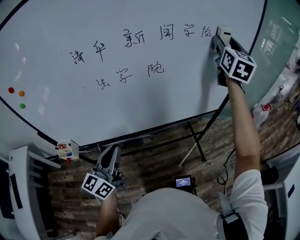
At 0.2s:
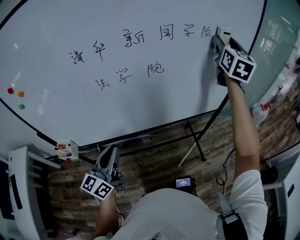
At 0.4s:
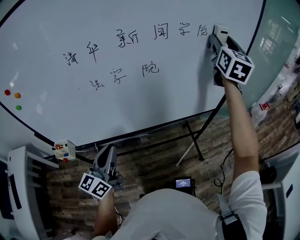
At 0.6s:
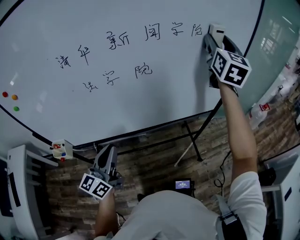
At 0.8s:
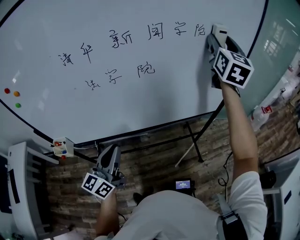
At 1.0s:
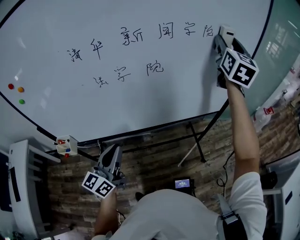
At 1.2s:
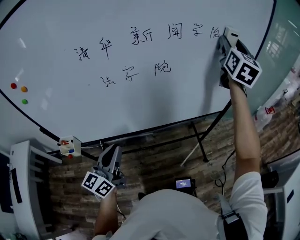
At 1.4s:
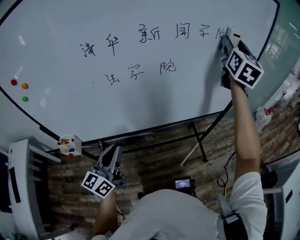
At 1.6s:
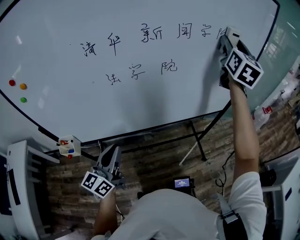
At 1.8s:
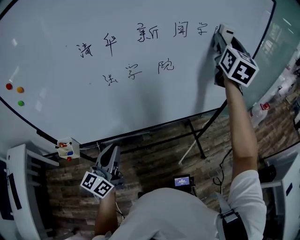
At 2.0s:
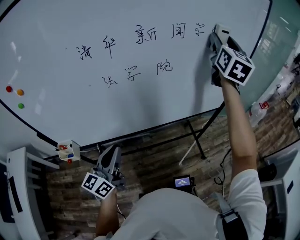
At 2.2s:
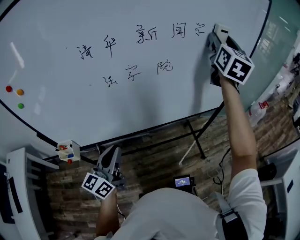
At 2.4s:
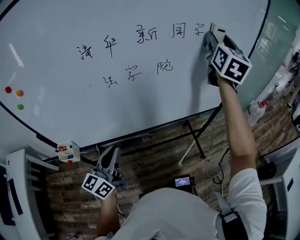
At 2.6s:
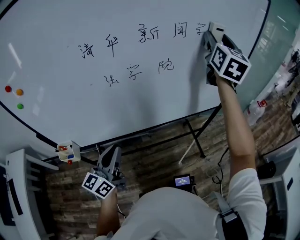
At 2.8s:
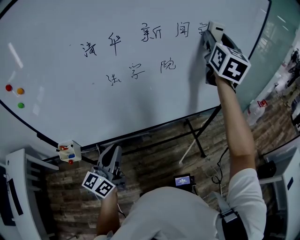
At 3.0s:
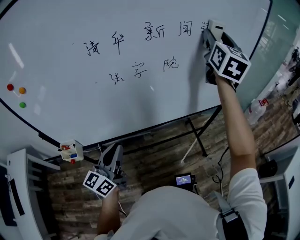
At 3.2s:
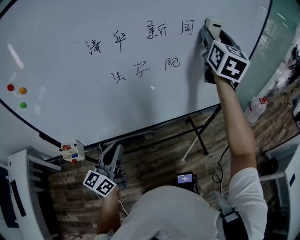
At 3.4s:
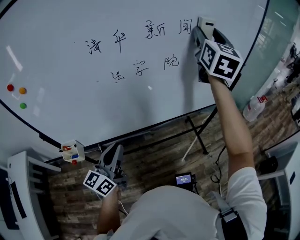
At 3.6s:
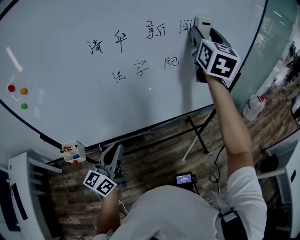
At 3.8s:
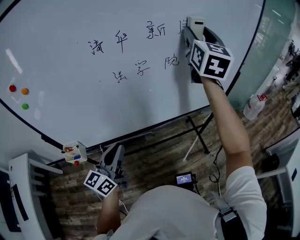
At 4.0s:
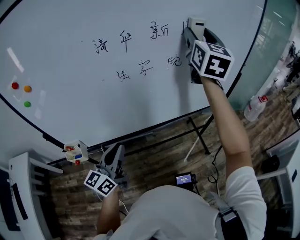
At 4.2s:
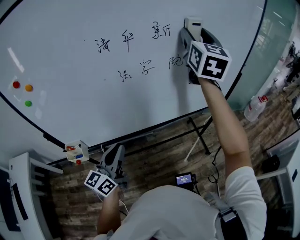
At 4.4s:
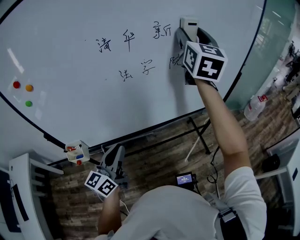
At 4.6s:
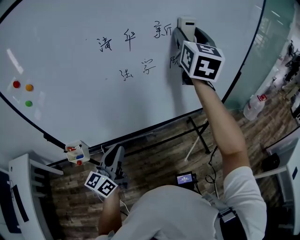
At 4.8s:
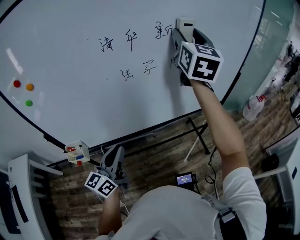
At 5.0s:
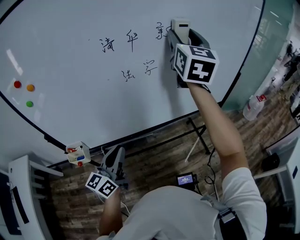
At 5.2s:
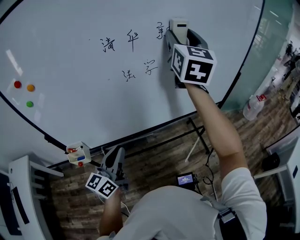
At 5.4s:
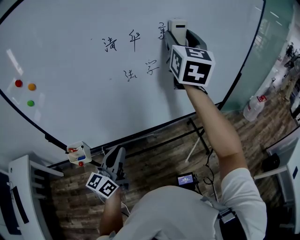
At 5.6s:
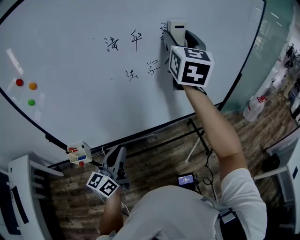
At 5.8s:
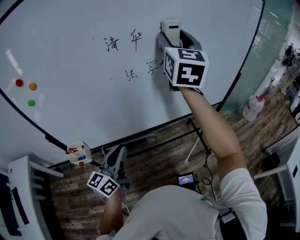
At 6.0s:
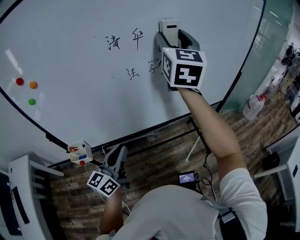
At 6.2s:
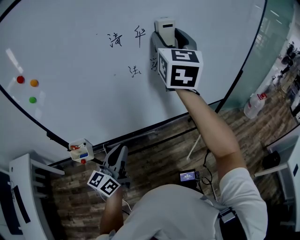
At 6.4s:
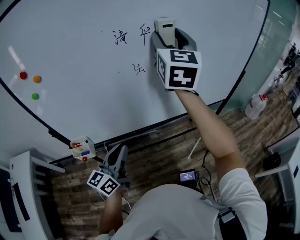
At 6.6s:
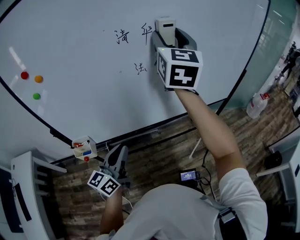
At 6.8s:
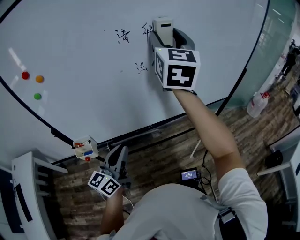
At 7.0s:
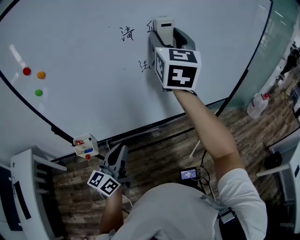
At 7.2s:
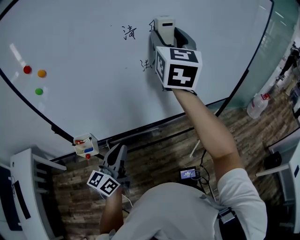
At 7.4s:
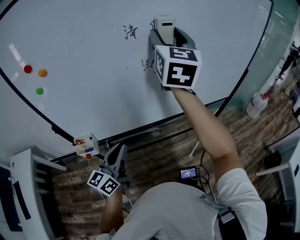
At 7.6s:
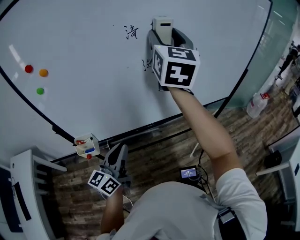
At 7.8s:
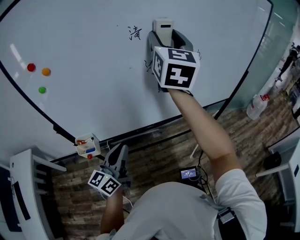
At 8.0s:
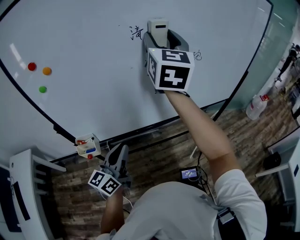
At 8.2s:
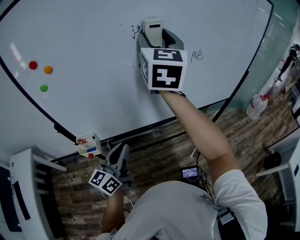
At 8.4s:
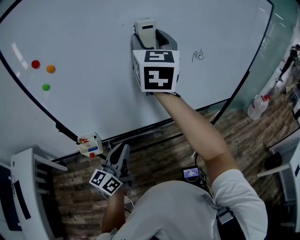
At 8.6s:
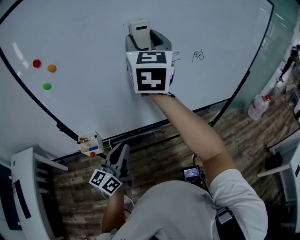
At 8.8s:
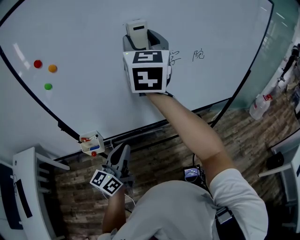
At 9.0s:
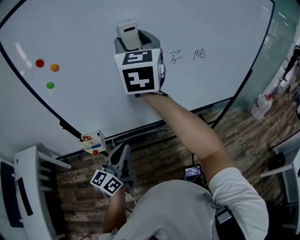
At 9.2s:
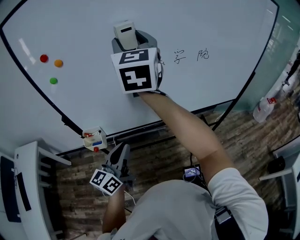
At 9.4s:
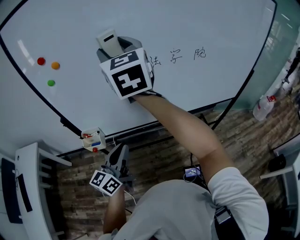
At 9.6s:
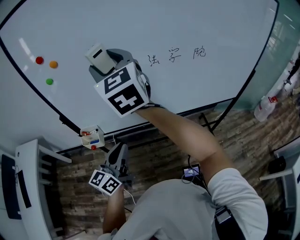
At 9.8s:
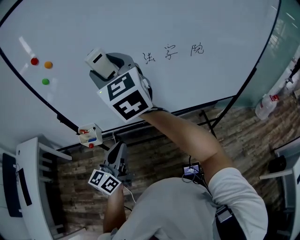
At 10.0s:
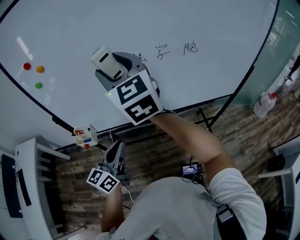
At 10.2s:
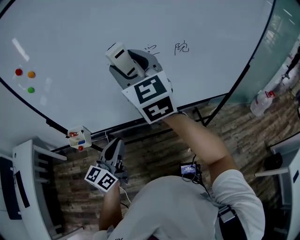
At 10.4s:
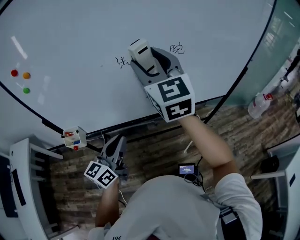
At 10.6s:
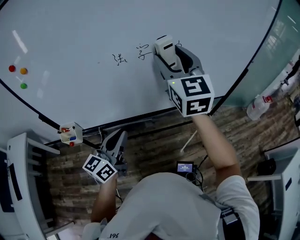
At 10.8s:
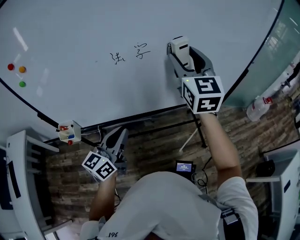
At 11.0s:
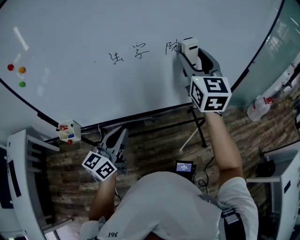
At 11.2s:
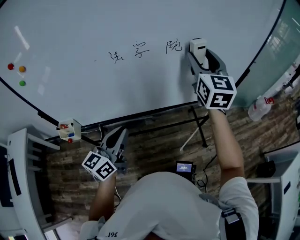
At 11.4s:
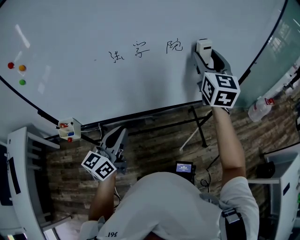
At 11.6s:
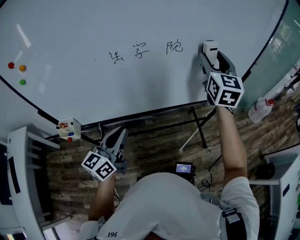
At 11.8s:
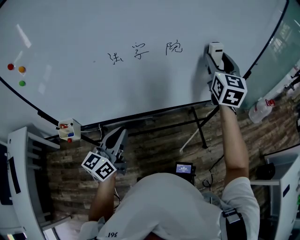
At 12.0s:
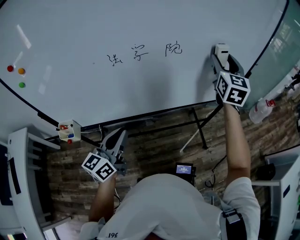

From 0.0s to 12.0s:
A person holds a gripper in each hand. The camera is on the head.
From 0.0s to 1.6s: The grippers stay close to where they were, moving slightly.
From 1.6s to 3.0s: The right gripper travels to the left by some 10 cm.
From 3.0s to 4.4s: The right gripper moves to the left and backward, about 15 cm.
From 4.4s to 6.0s: The right gripper is displaced to the left by approximately 10 cm.
From 6.0s to 7.6s: The right gripper moves to the left, approximately 5 cm.
From 7.6s to 9.0s: The right gripper heads to the left and backward, covering approximately 15 cm.
From 9.0s to 10.4s: The left gripper heads to the right, covering some 10 cm; the right gripper travels to the right and downward by approximately 15 cm.
From 10.4s to 12.0s: The left gripper shifts by about 5 cm; the right gripper is displaced to the right and forward by some 30 cm, and rotates roughly 30 degrees.

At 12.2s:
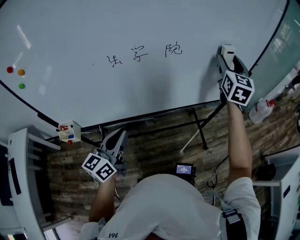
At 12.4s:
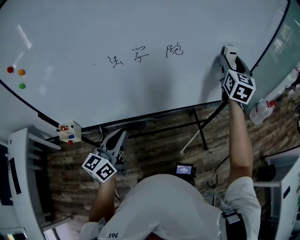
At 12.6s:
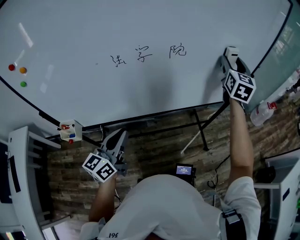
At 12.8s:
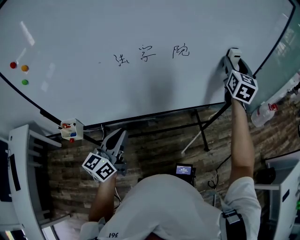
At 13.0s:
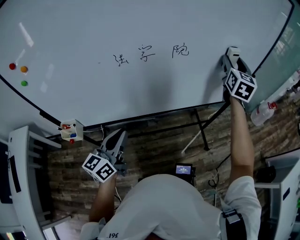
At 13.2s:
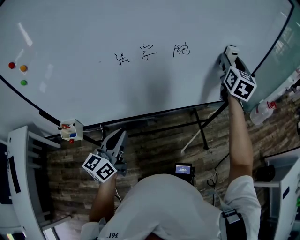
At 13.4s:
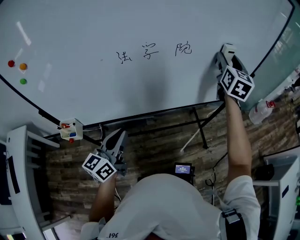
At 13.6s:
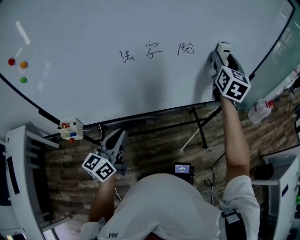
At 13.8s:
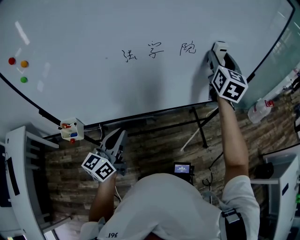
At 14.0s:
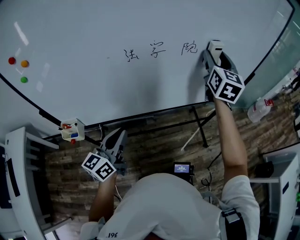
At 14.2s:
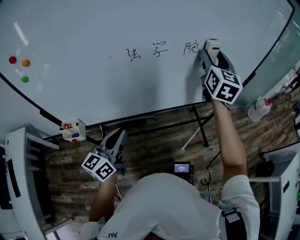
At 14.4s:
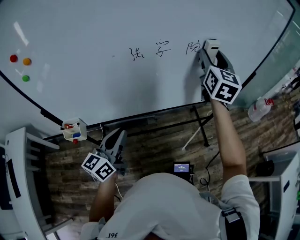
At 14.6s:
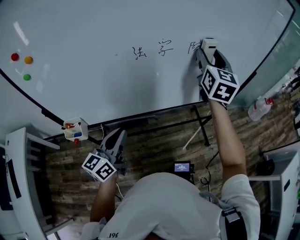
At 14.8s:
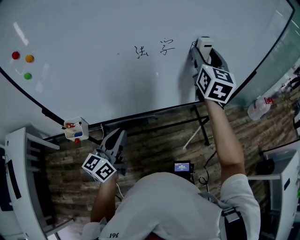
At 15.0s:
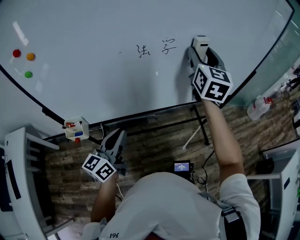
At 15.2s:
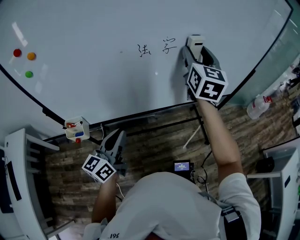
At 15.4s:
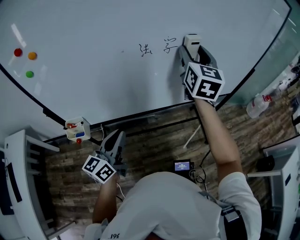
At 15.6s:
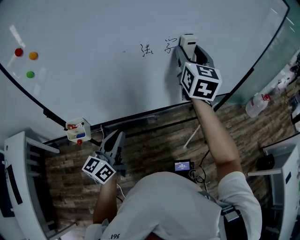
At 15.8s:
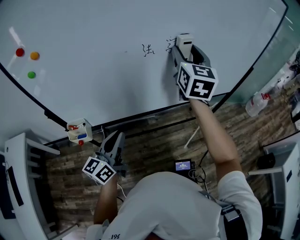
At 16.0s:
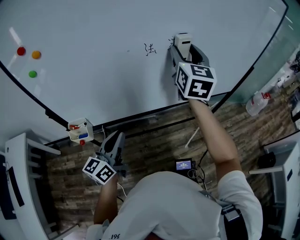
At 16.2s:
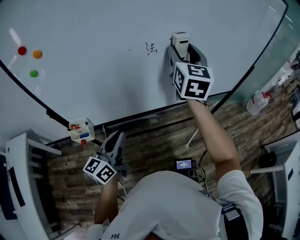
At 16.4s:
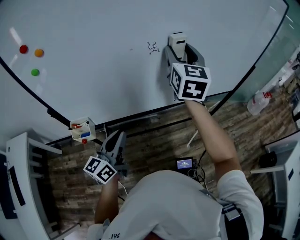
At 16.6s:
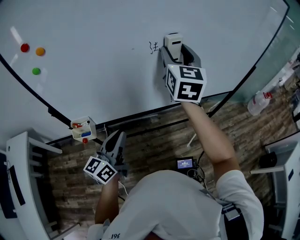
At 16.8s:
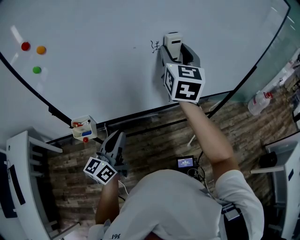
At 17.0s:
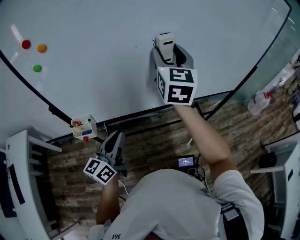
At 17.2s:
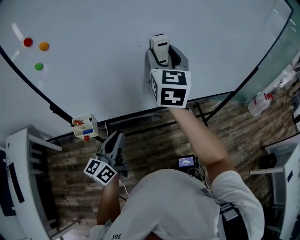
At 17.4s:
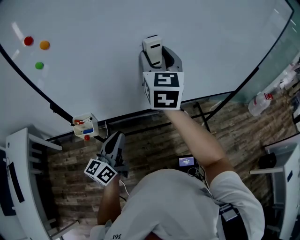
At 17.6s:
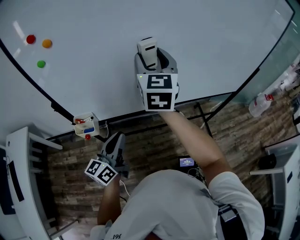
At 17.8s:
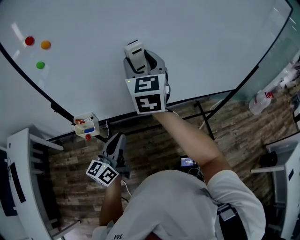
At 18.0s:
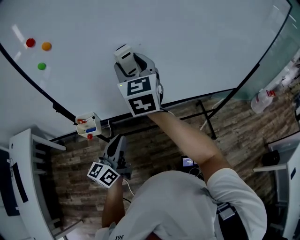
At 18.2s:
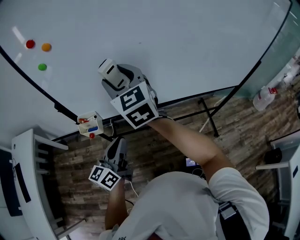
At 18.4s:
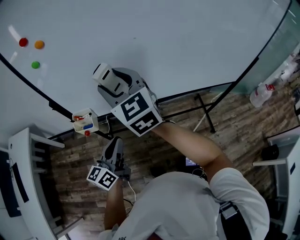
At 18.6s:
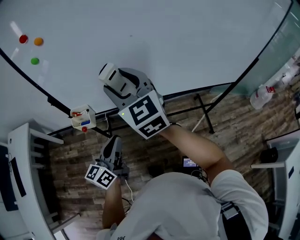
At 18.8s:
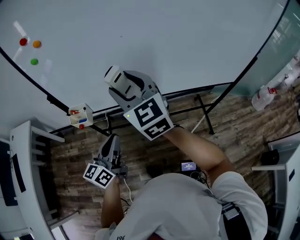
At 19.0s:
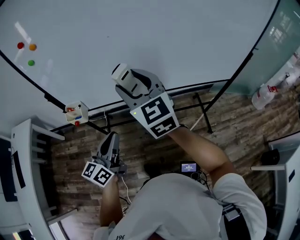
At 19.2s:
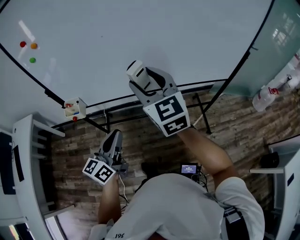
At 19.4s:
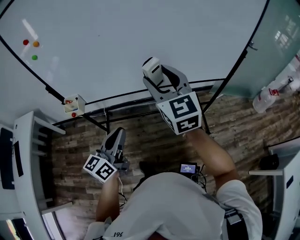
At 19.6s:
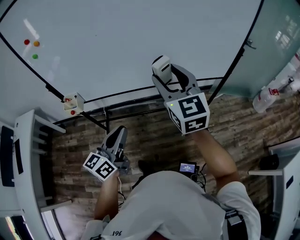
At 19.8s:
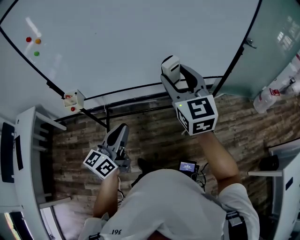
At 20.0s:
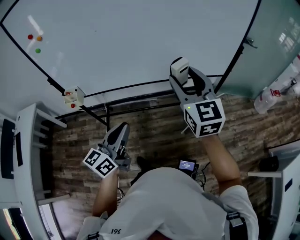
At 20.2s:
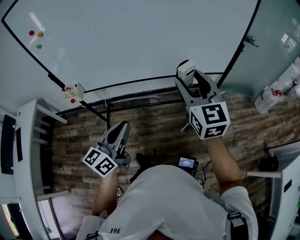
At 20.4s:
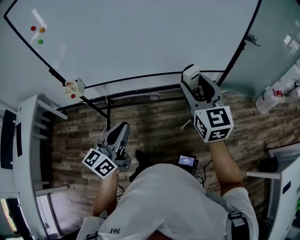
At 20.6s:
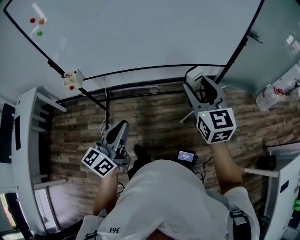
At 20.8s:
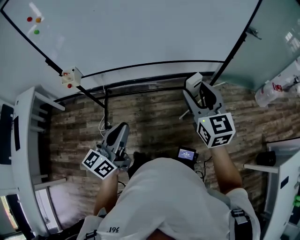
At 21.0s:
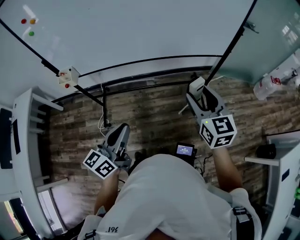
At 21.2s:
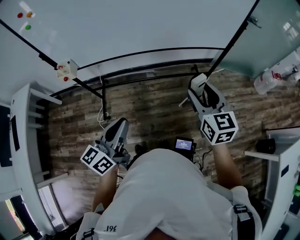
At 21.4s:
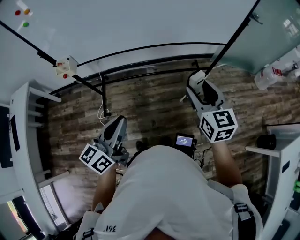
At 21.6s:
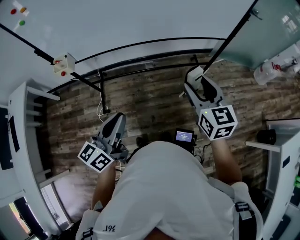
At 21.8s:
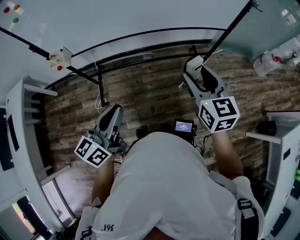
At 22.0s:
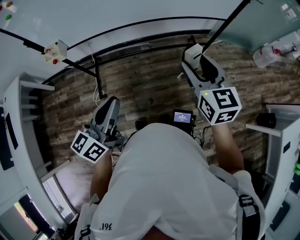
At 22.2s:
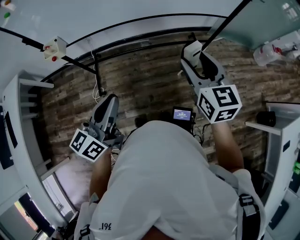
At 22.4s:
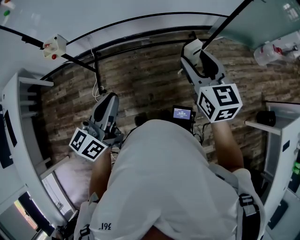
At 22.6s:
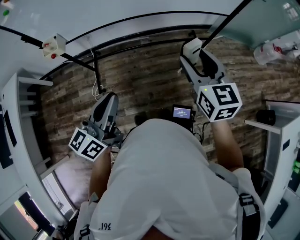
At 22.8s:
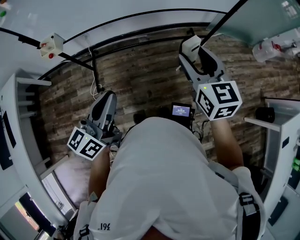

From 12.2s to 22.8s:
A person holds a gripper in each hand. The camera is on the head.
From 12.2s to 13.8s: The right gripper travels to the left by about 10 cm, while the left gripper changes place by approximately 5 cm.
From 13.8s to 15.2s: The left gripper travels to the left by roughly 5 cm. Meanwhile the right gripper shifts approximately 15 cm to the left and backward.
From 15.2s to 16.8s: The left gripper moves some 5 cm; the right gripper is displaced to the left by approximately 10 cm.
From 16.8s to 18.2s: The left gripper shifts by approximately 5 cm, while the right gripper travels to the left and backward by some 25 cm, and rotates approximately 30 degrees.
From 18.2s to 19.8s: The left gripper goes about 25 cm to the right and backward, while the right gripper goes approximately 40 cm to the right and backward.
From 19.8s to 21.2s: The right gripper goes roughly 20 cm downward, backward and to the right. The left gripper moves backward, some 10 cm.
From 21.2s to 22.8s: The left gripper ends up about 5 cm from where it was. Meanwhile the right gripper goes some 5 cm to the left.

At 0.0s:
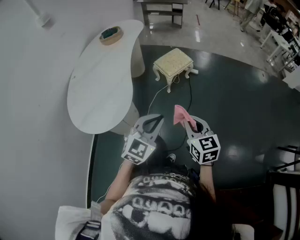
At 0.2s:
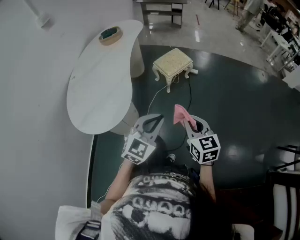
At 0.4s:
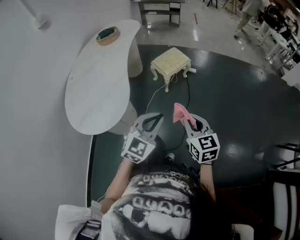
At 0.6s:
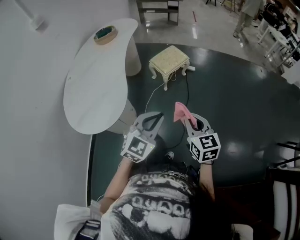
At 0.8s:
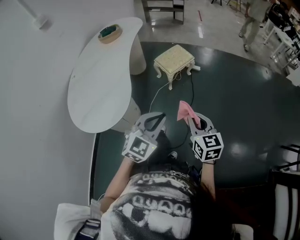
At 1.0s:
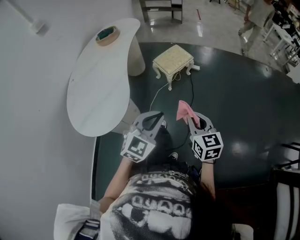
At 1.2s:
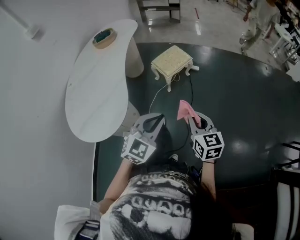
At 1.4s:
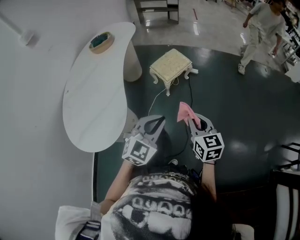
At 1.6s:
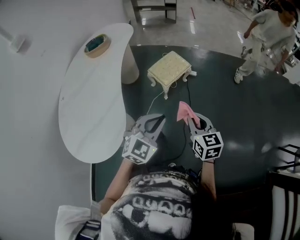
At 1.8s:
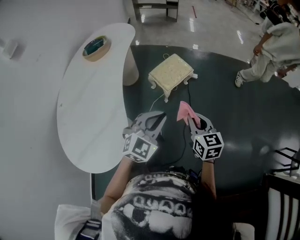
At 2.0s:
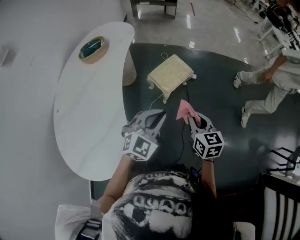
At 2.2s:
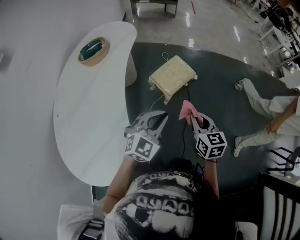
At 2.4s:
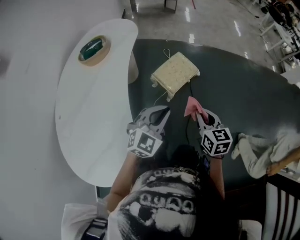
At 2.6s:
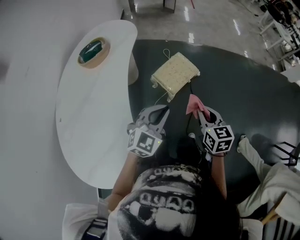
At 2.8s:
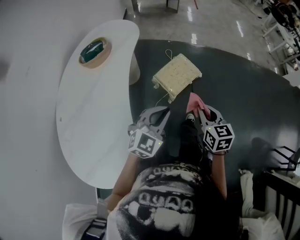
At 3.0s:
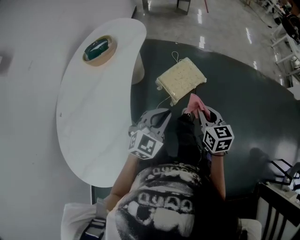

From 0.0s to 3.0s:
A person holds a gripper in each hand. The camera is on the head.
From 0.0s to 1.6s: The two grippers go about 20 cm forward.
From 1.6s to 3.0s: The right gripper heads forward, covering approximately 25 cm. The left gripper travels forward and to the left by about 25 cm.
